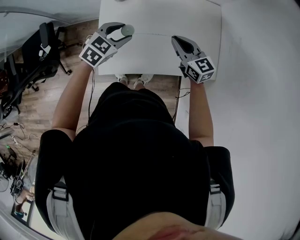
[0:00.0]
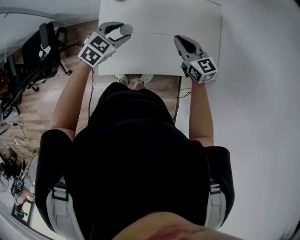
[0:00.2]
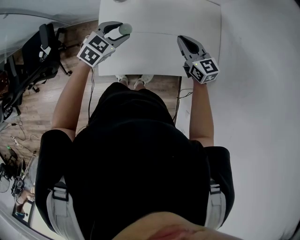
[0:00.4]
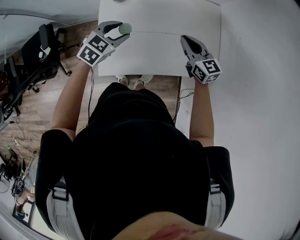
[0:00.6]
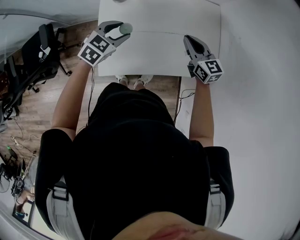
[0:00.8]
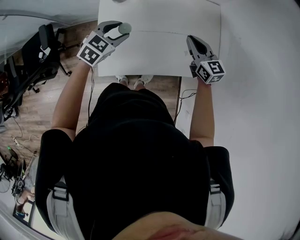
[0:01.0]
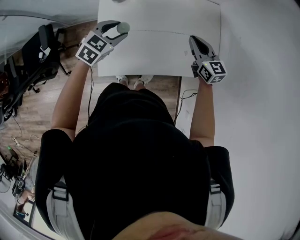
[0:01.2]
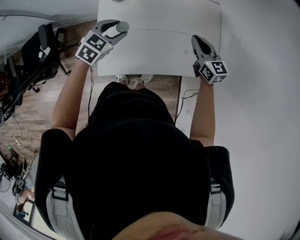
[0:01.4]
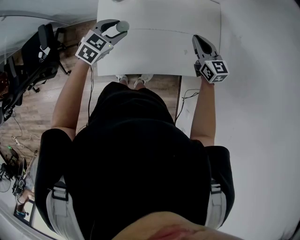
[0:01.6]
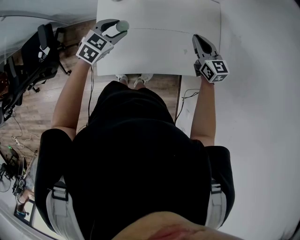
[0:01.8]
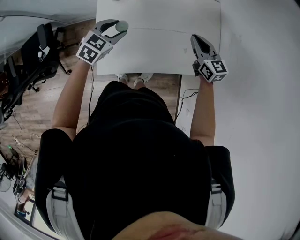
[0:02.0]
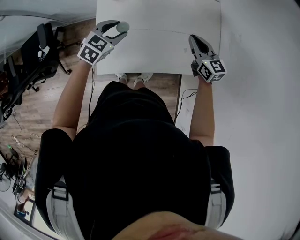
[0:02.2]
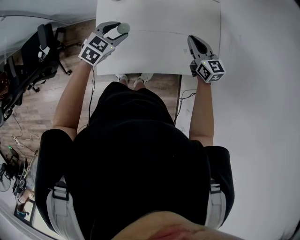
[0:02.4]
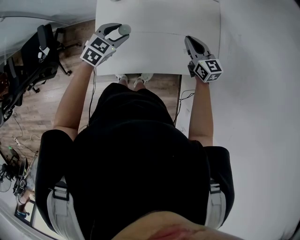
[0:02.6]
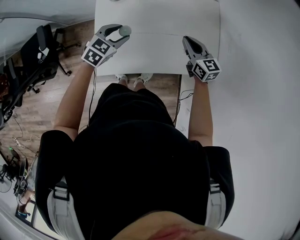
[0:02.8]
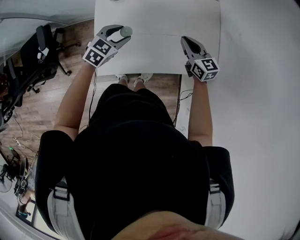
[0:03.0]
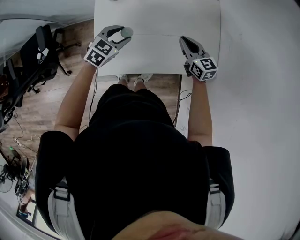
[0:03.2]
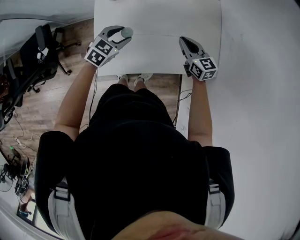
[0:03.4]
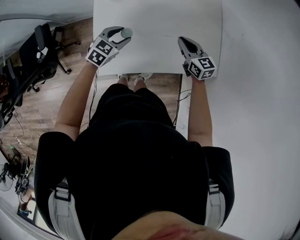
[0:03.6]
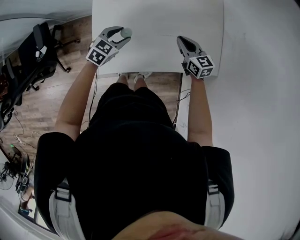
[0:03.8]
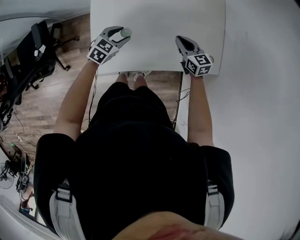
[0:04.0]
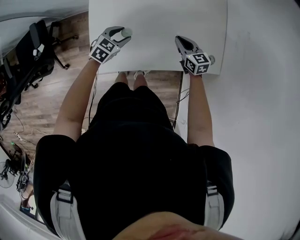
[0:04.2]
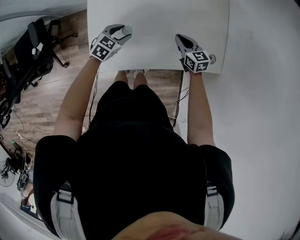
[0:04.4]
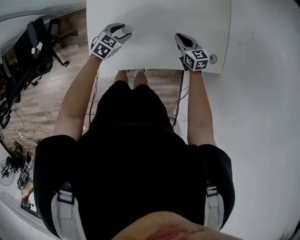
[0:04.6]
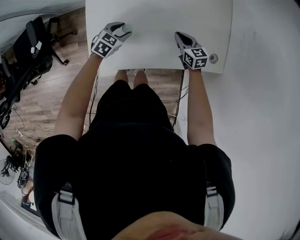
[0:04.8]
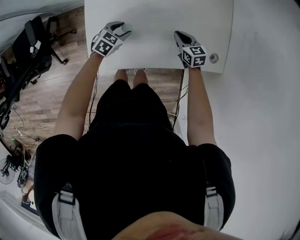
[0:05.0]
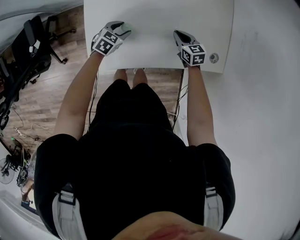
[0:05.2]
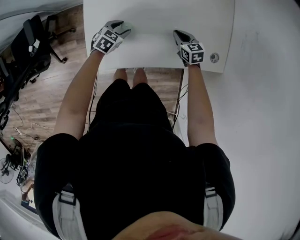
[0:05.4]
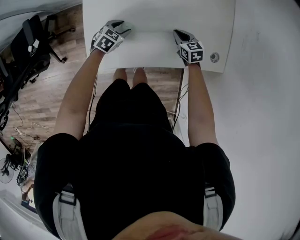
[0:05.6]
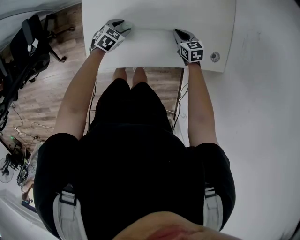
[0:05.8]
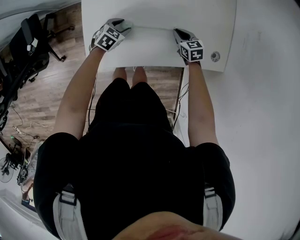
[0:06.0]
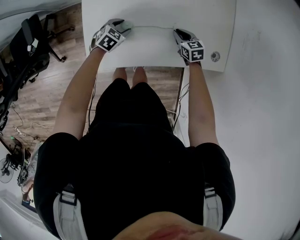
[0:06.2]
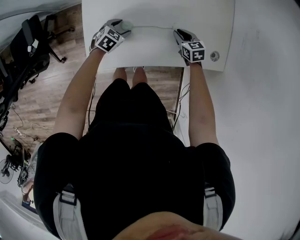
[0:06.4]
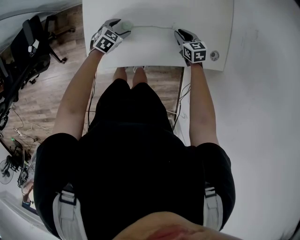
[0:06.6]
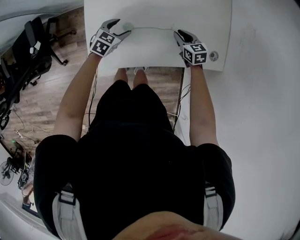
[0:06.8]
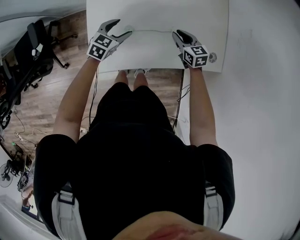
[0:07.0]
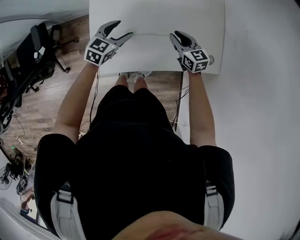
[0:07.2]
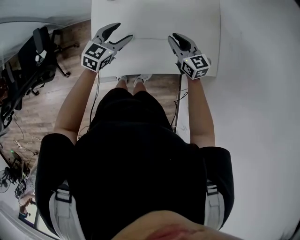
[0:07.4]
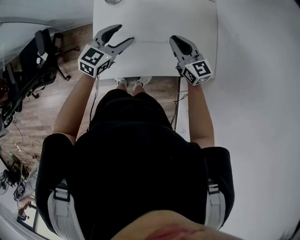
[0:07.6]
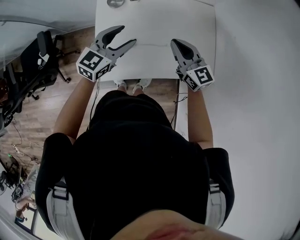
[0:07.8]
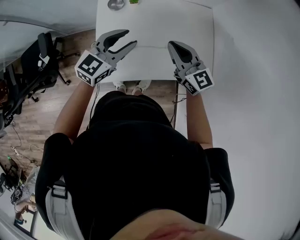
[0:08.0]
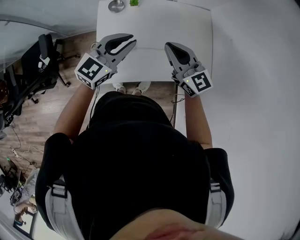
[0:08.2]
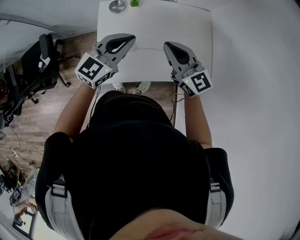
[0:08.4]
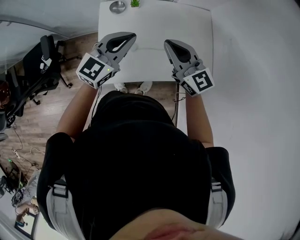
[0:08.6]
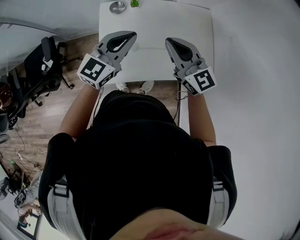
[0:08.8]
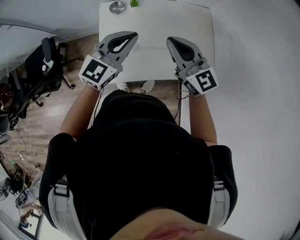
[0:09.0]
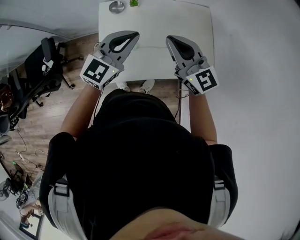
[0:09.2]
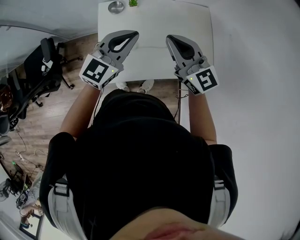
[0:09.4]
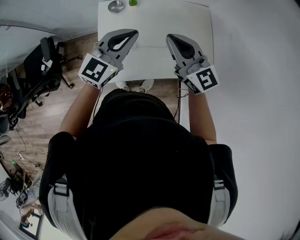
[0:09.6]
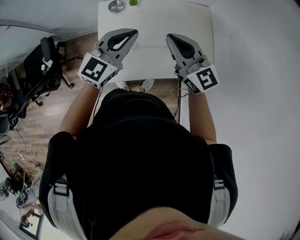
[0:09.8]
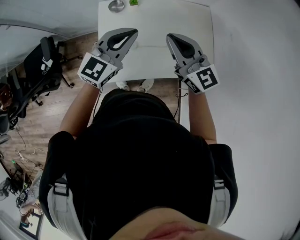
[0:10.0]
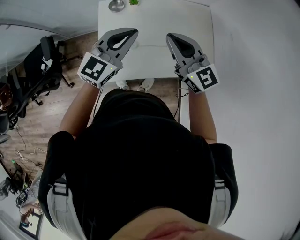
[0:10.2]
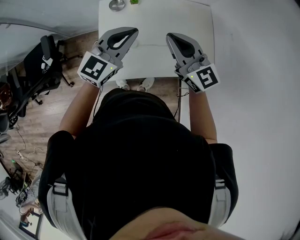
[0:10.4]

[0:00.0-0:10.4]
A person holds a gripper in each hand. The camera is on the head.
0:00.0 to 0:01.4: The right gripper goes some 10 cm to the right.
0:01.4 to 0:03.0: Both grippers travel together downward, roughly 5 cm.
0:03.0 to 0:04.4: The two grippers go roughly 15 cm downward.
0:04.4 to 0:06.0: The grippers both shift downward by approximately 10 cm.
0:06.0 to 0:07.4: Both grippers travel together upward, about 25 cm. The right gripper turns by some 30 degrees. Meanwhile the left gripper changes its angle by roughly 30 degrees.
0:07.4 to 0:09.0: The two grippers go some 20 cm upward. The right gripper changes its angle by about 30 degrees; the left gripper turns by some 20 degrees, and closes its fingers.
0:09.0 to 0:10.4: Neither gripper changes place.

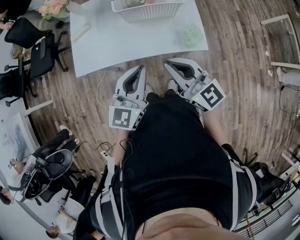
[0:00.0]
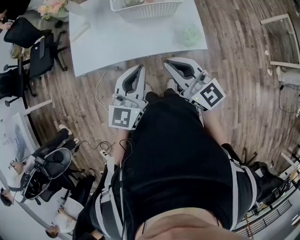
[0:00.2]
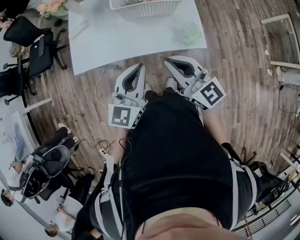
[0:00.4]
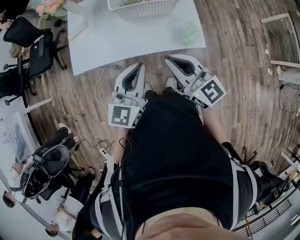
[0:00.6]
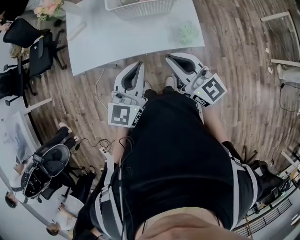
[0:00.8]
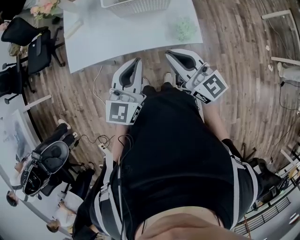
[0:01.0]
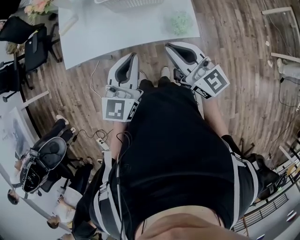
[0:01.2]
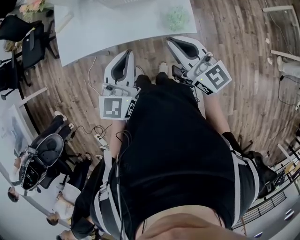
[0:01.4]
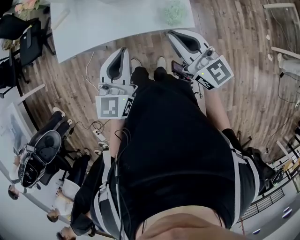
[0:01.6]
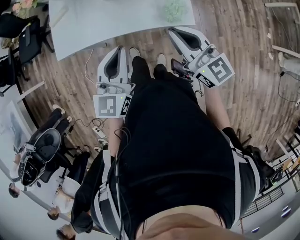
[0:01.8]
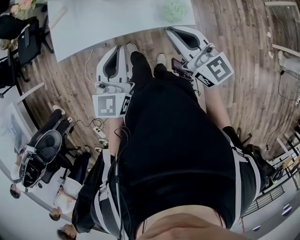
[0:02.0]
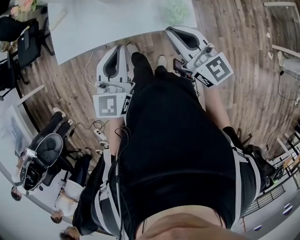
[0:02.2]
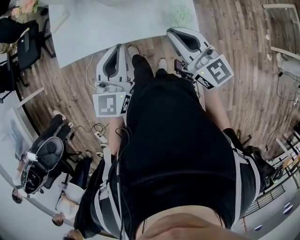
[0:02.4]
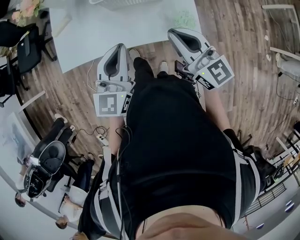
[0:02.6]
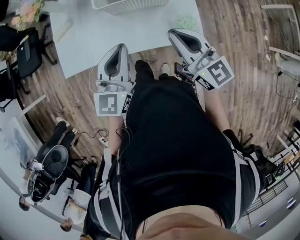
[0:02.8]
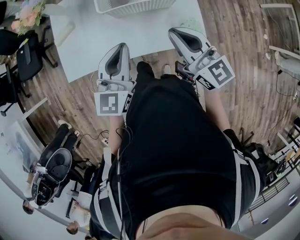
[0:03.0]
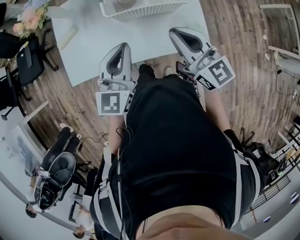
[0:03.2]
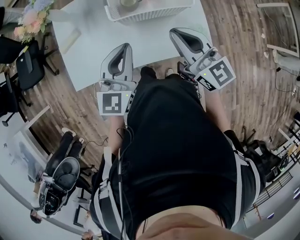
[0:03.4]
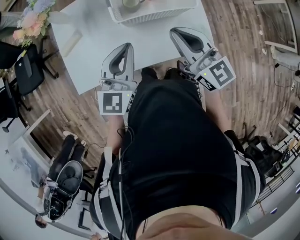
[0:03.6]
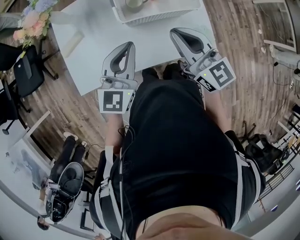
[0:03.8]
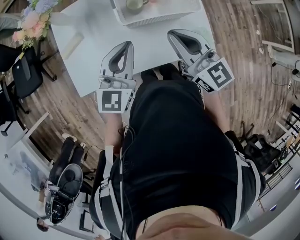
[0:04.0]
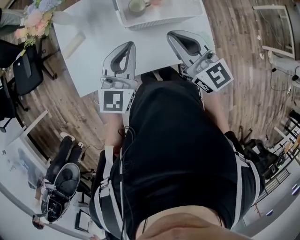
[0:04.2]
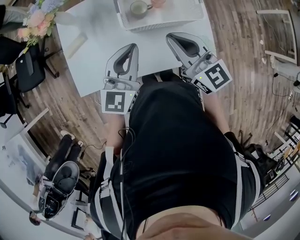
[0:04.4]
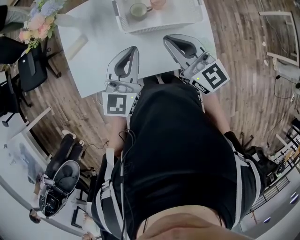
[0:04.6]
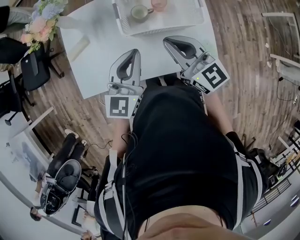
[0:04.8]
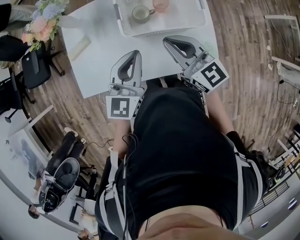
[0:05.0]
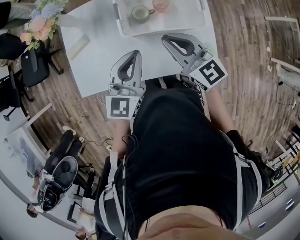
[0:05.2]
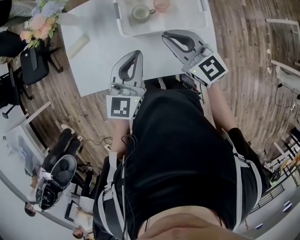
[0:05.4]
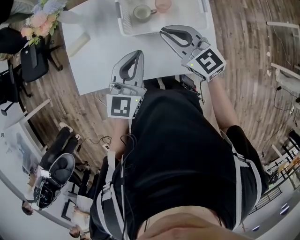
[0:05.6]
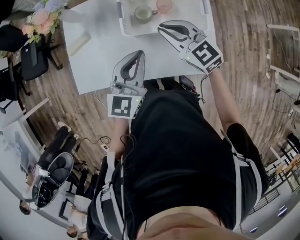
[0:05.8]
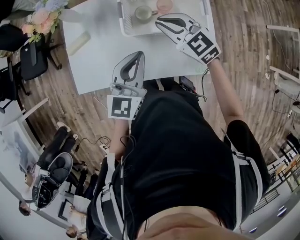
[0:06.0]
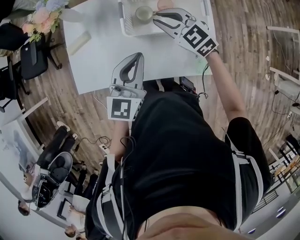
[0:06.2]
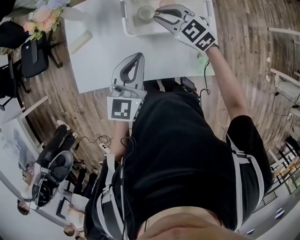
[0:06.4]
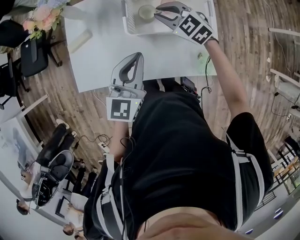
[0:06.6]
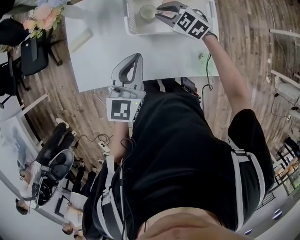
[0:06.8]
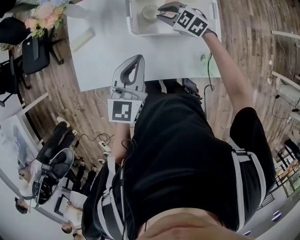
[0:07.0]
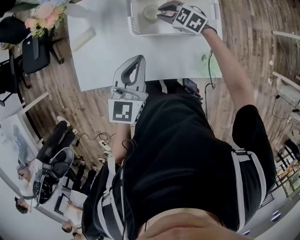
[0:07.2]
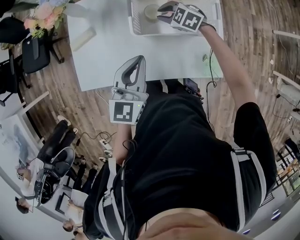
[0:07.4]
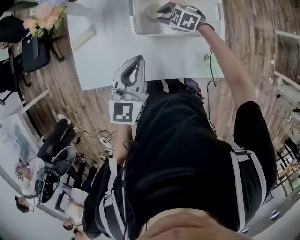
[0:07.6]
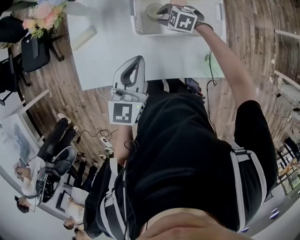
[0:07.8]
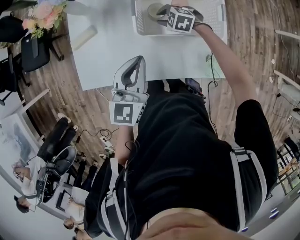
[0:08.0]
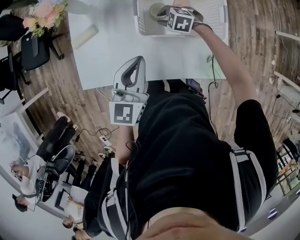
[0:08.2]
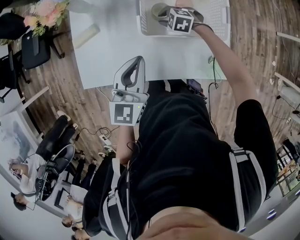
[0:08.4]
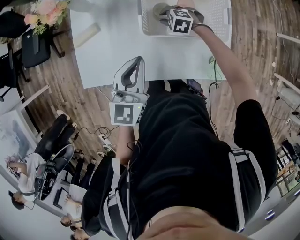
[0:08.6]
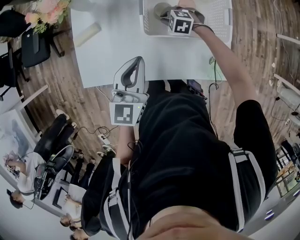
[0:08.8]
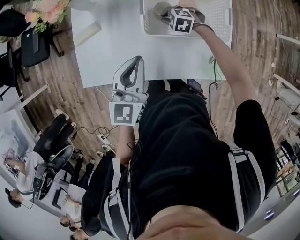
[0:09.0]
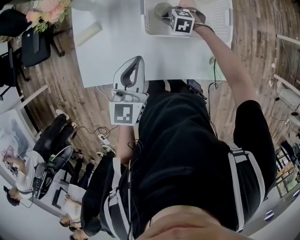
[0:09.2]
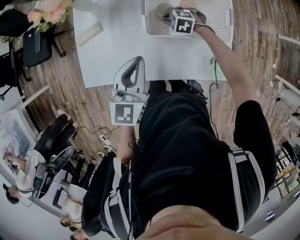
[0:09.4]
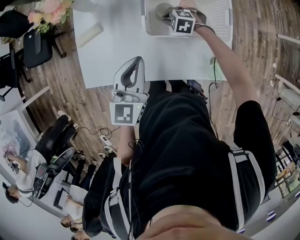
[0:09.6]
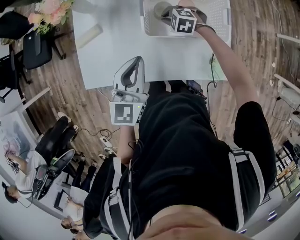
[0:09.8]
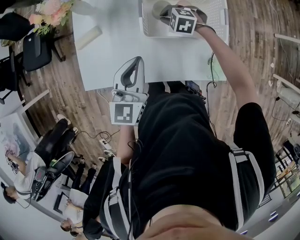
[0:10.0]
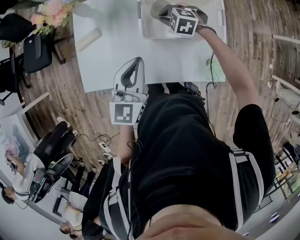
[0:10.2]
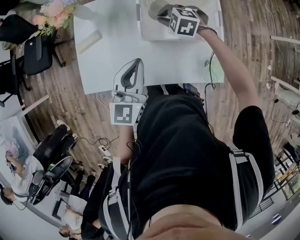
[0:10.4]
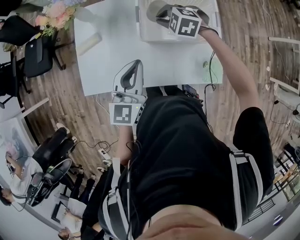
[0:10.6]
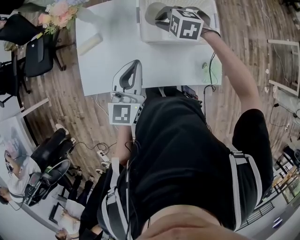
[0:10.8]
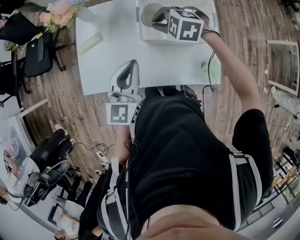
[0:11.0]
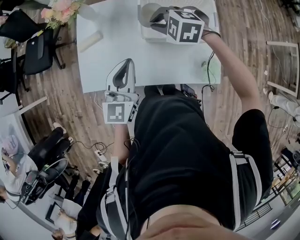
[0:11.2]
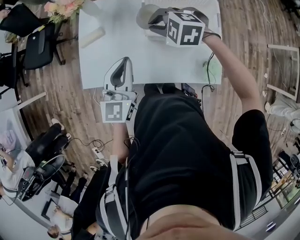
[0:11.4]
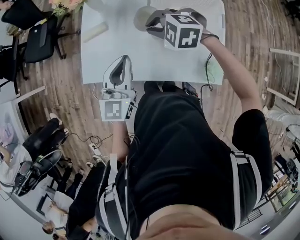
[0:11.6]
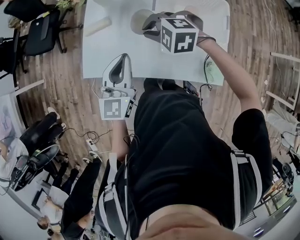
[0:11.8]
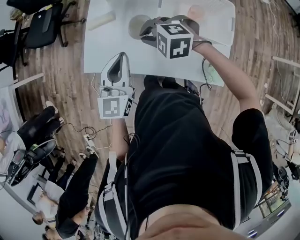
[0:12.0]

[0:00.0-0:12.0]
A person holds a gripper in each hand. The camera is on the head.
0:00.0 to 0:01.6: The right gripper moves to the right, approximately 15 cm; the left gripper is displaced to the right by approximately 5 cm.
0:01.6 to 0:03.0: Both grippers travel together forward and to the left, approximately 20 cm.
0:03.0 to 0:04.4: The right gripper moves to the left and forward, some 15 cm. Meanwhile the left gripper is displaced forward and to the left by roughly 10 cm.
0:04.4 to 0:06.0: The right gripper shifts roughly 15 cm forward and downward, and rotates some 30 degrees.
0:06.0 to 0:07.6: The right gripper heads downward and forward, covering roughly 20 cm, and turns by roughly 30 degrees.
0:07.6 to 0:09.0: The right gripper is displaced downward by approximately 5 cm.
0:09.0 to 0:10.4: The right gripper goes approximately 15 cm upward.
0:10.4 to 0:12.0: The right gripper goes roughly 25 cm to the left, upward and backward, and swivels roughly 20 degrees; the left gripper travels to the left by approximately 10 cm.

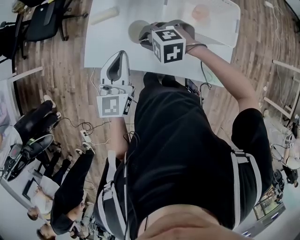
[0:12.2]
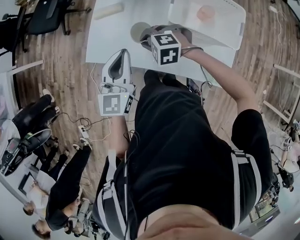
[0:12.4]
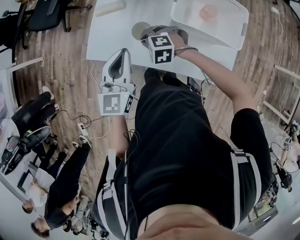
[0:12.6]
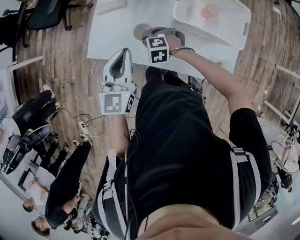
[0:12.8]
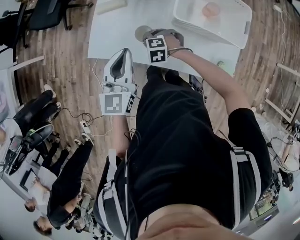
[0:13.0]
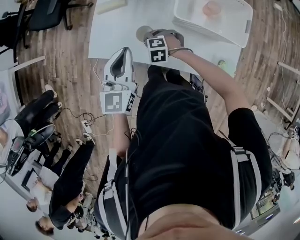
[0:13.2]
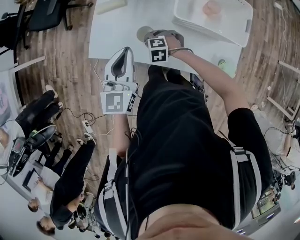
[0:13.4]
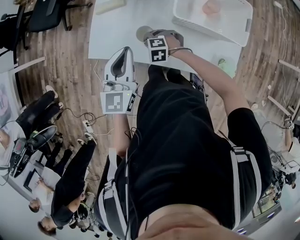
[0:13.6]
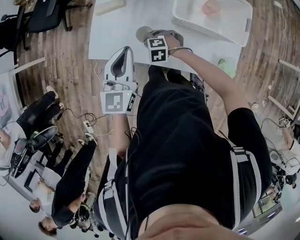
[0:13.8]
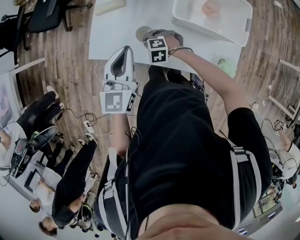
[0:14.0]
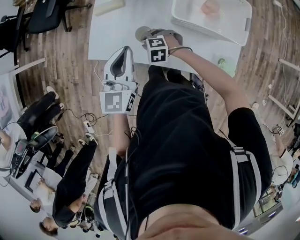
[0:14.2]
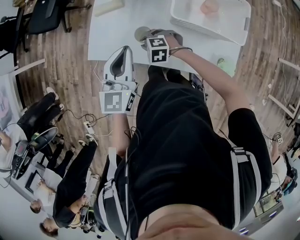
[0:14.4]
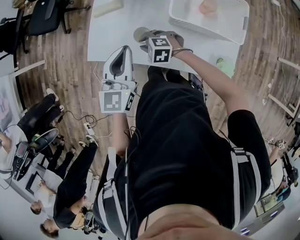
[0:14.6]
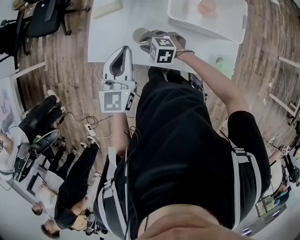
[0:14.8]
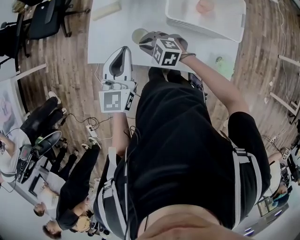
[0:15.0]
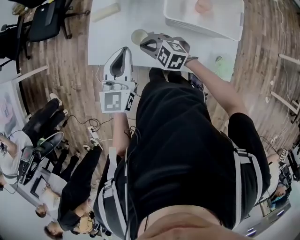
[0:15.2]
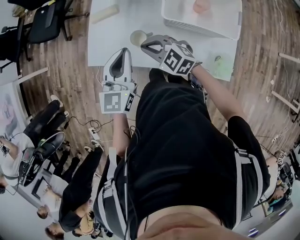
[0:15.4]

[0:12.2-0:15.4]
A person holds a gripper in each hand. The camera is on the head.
0:12.2 to 0:13.8: The right gripper is displaced downward by approximately 20 cm.
0:13.8 to 0:15.4: The right gripper moves upward, roughly 15 cm, and points its fingers roughly 30 degrees further upward.
